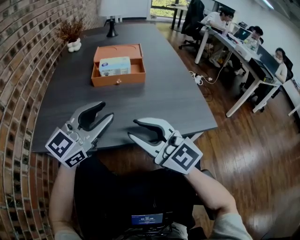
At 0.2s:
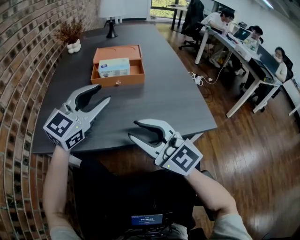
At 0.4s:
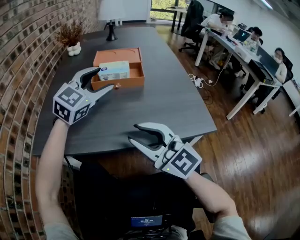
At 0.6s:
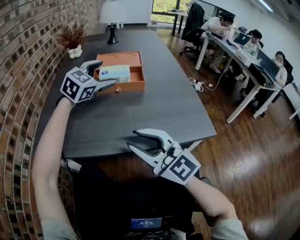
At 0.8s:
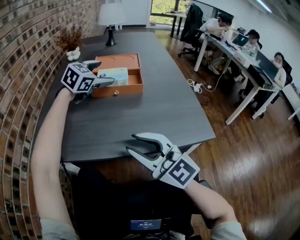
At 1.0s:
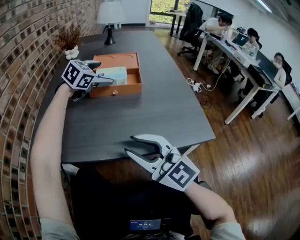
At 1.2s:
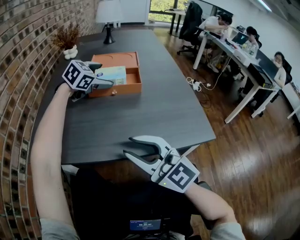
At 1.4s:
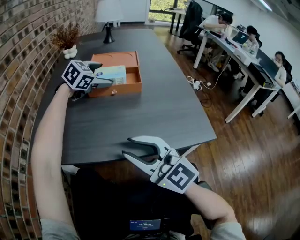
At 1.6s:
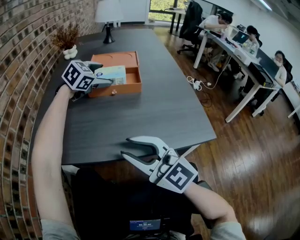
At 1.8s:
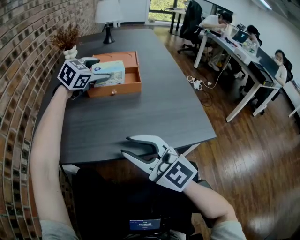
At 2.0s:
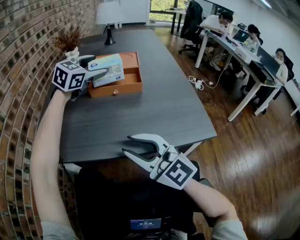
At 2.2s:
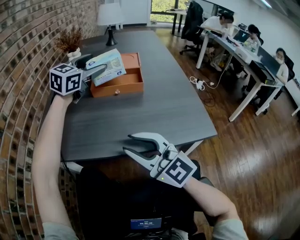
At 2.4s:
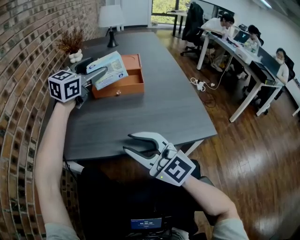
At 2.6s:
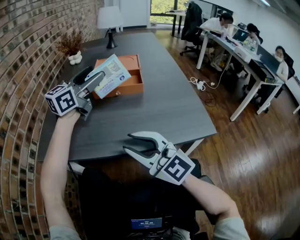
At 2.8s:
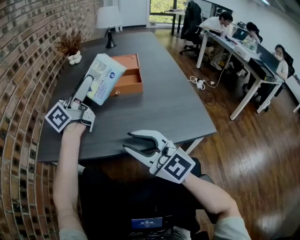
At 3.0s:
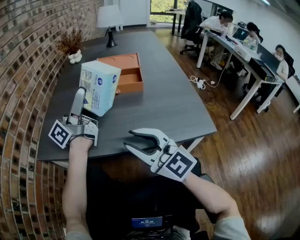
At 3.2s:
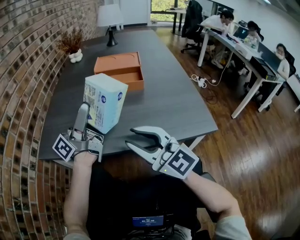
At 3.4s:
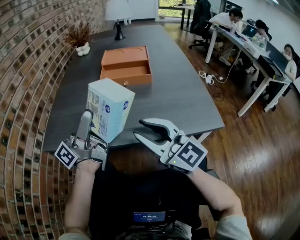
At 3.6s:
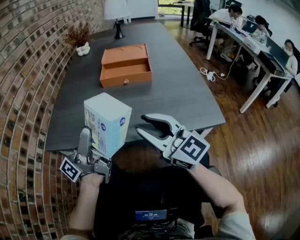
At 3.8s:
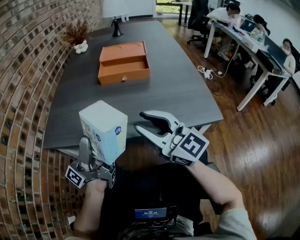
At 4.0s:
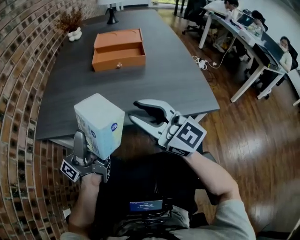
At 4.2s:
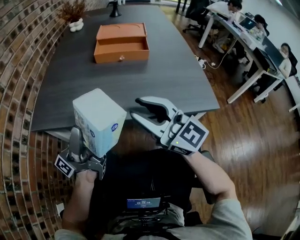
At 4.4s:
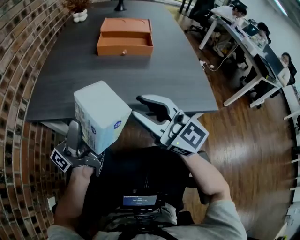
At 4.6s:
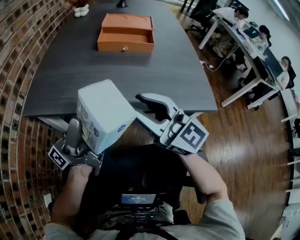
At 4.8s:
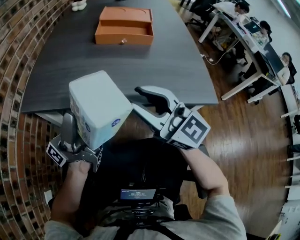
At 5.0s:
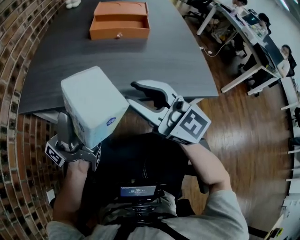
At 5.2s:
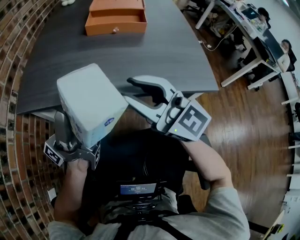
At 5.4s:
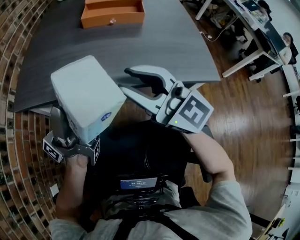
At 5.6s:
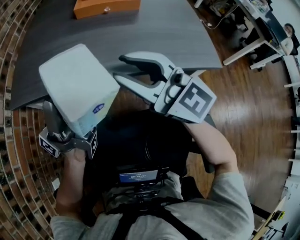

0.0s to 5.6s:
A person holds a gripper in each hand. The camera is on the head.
0.0s to 1.4s: The left gripper heads forward, covering some 25 cm, angles its fingers downward, by roughly 40 degrees, and opens its fingers.
1.4s to 2.8s: The left gripper travels backward, upward and to the left by some 20 cm, and tilts its fingers about 60 degrees upward.
2.8s to 4.2s: The left gripper travels backward and downward by about 25 cm, and rotates roughly 40 degrees.
4.2s to 5.6s: The grippers move only a little.

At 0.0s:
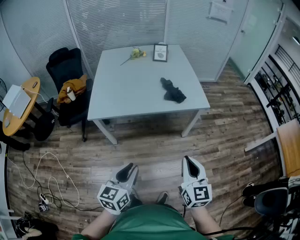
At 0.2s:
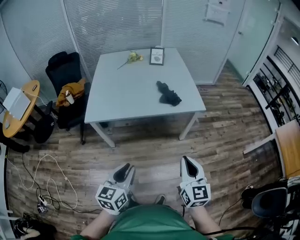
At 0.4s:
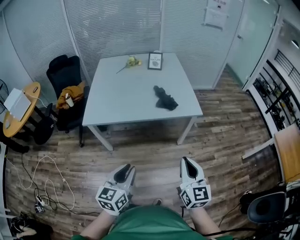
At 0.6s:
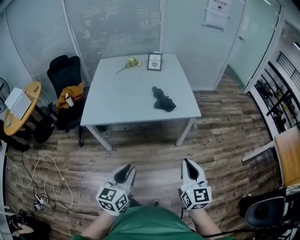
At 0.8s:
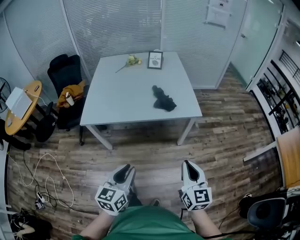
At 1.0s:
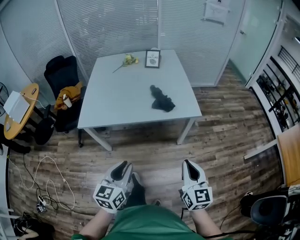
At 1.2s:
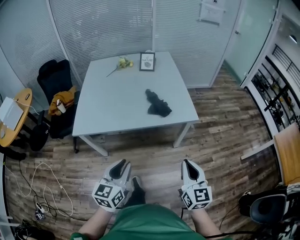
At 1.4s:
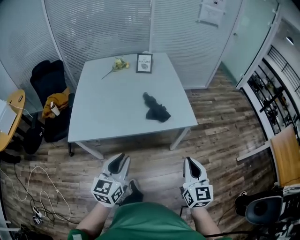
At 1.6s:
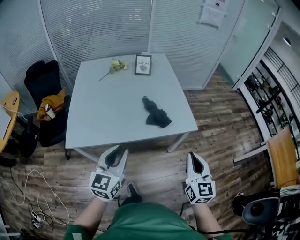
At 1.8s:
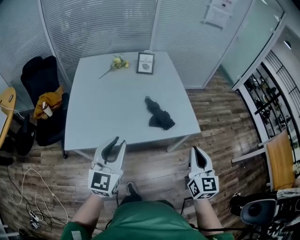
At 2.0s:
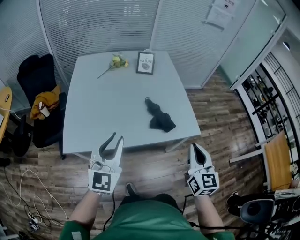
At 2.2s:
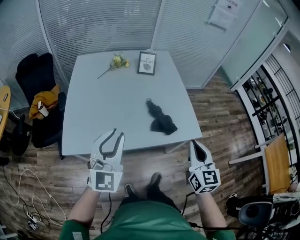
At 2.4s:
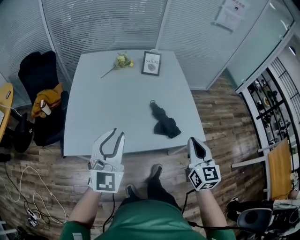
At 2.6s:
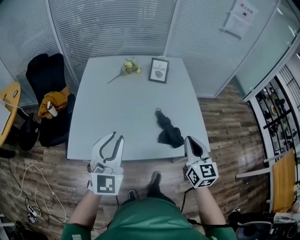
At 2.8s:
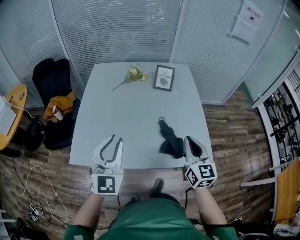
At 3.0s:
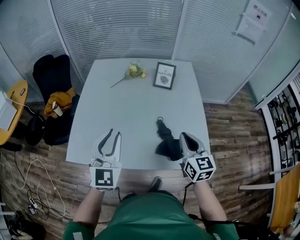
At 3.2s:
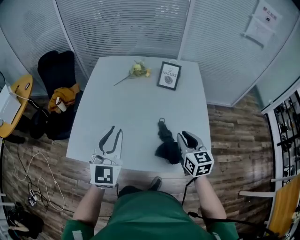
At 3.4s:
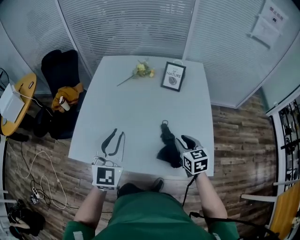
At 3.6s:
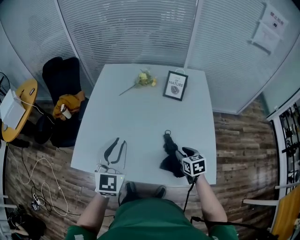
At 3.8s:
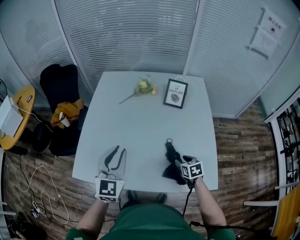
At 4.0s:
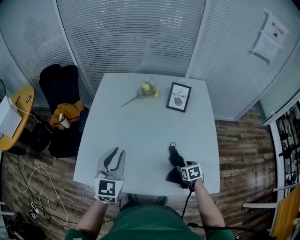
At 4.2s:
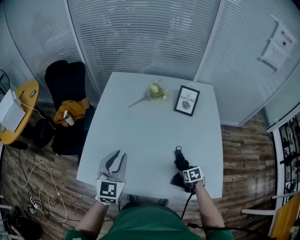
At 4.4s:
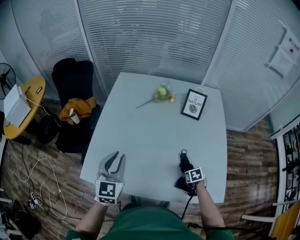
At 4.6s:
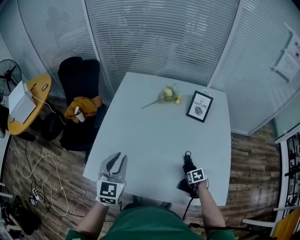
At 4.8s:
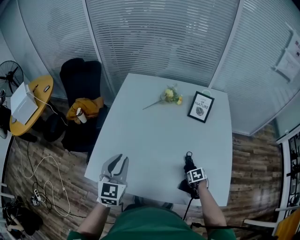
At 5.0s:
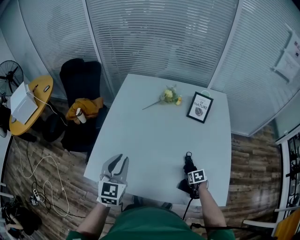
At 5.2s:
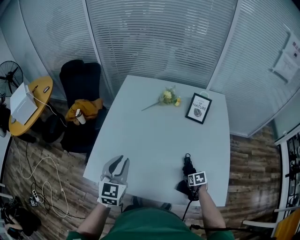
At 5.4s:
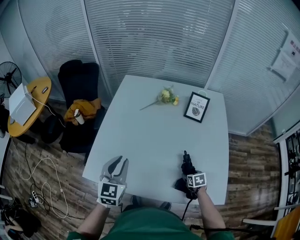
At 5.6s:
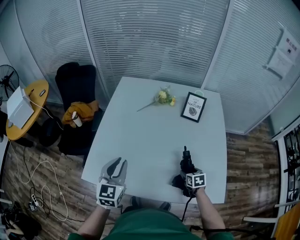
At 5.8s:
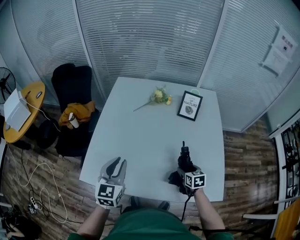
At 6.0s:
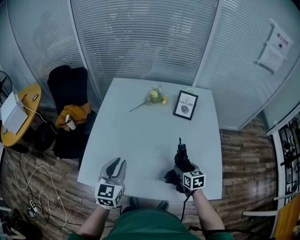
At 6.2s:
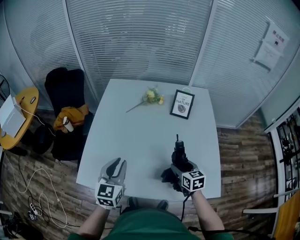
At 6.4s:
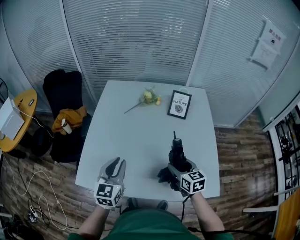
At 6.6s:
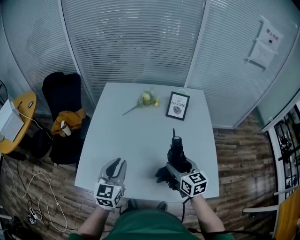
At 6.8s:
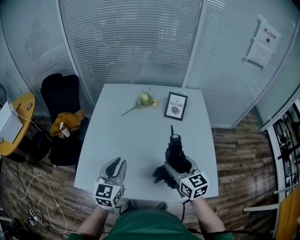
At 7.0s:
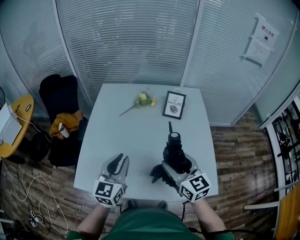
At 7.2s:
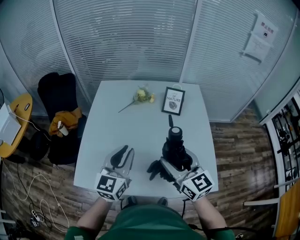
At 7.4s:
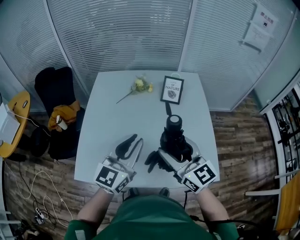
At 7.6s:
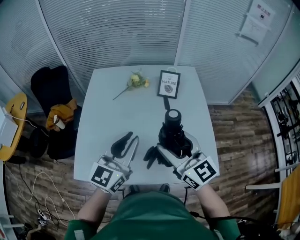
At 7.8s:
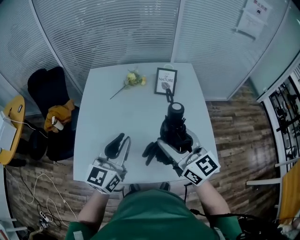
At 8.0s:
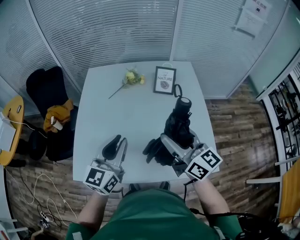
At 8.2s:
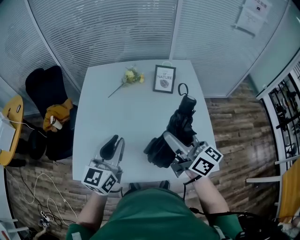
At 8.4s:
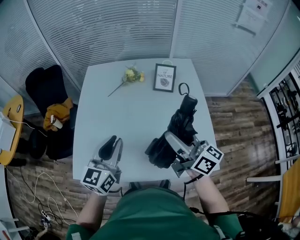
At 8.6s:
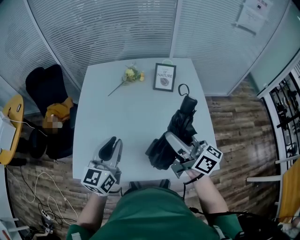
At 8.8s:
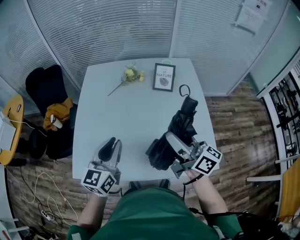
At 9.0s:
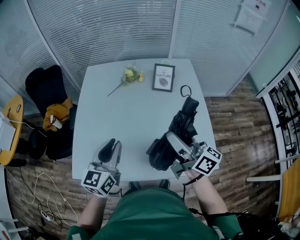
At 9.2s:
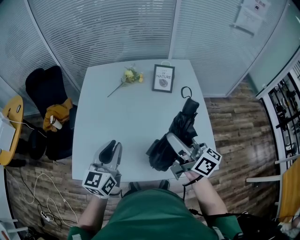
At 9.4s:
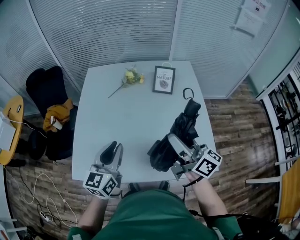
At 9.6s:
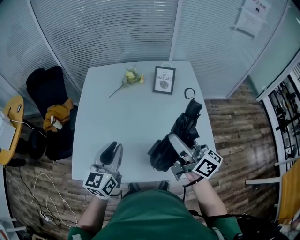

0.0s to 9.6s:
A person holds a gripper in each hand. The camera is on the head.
0.0s to 1.6s: Both grippers move forward, approximately 25 cm.
1.6s to 3.2s: The grippers both shift forward by about 35 cm. The right gripper changes its angle by approximately 30 degrees. Meanwhile the left gripper turns by roughly 30 degrees.
3.2s to 4.8s: The left gripper ends up some 20 cm from where it was; the right gripper goes approximately 30 cm downward, tilts its fingers approximately 50 degrees downward, and opens.
4.8s to 6.4s: The left gripper ends up approximately 5 cm from where it was; the right gripper goes approximately 25 cm upward, and tips its fingers upward by some 50 degrees.
6.4s to 8.0s: The right gripper is displaced upward by about 20 cm, and points its fingers some 30 degrees further upward. Meanwhile the left gripper goes approximately 10 cm to the right and upward.
8.0s to 9.6s: The right gripper turns by approximately 20 degrees.

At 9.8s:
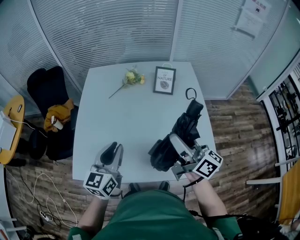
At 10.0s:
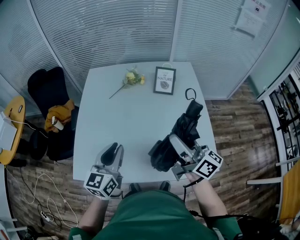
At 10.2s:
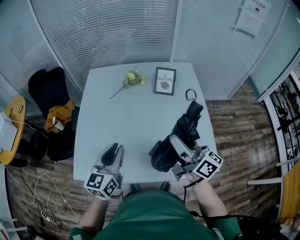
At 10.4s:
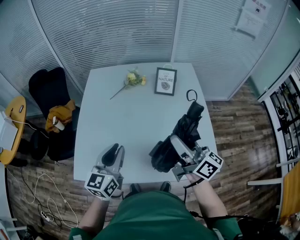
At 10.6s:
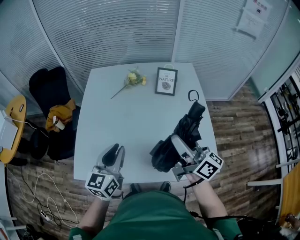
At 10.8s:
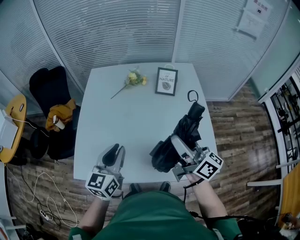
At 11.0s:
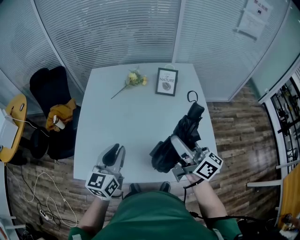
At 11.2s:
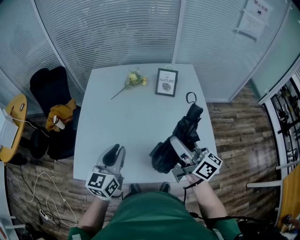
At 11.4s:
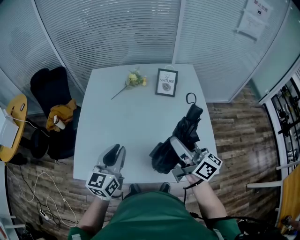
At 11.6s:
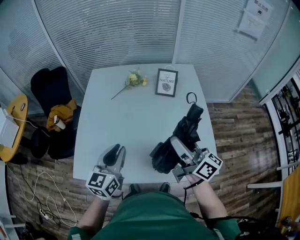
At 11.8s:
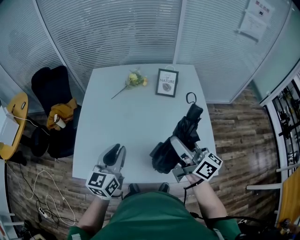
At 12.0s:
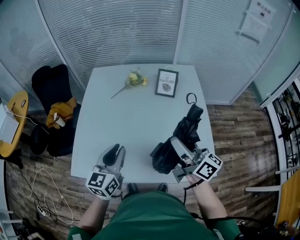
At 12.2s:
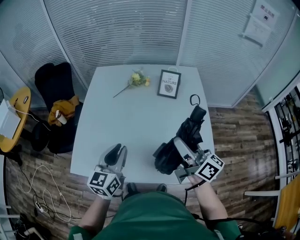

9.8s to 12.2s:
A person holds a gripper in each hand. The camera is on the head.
9.8s to 11.0s: Both grippers stay about where they are.
11.0s to 12.2s: The grippers move only a little.

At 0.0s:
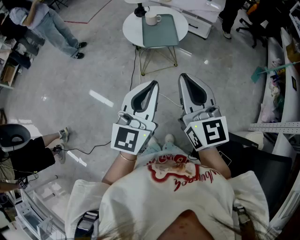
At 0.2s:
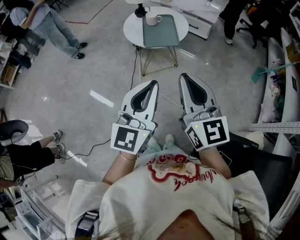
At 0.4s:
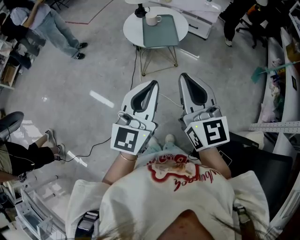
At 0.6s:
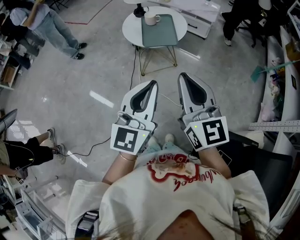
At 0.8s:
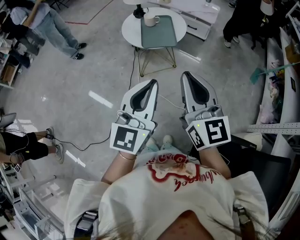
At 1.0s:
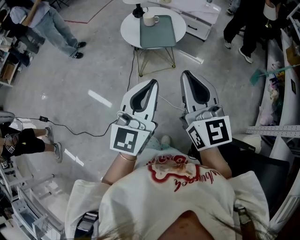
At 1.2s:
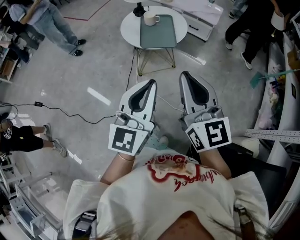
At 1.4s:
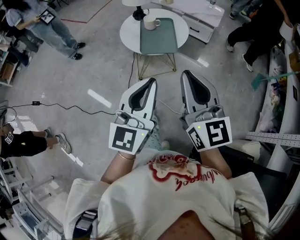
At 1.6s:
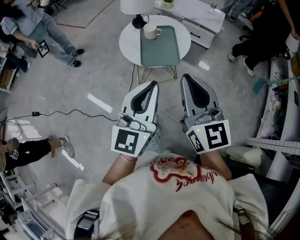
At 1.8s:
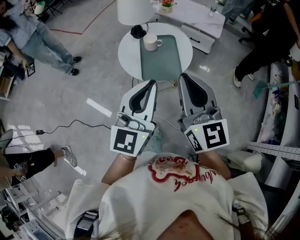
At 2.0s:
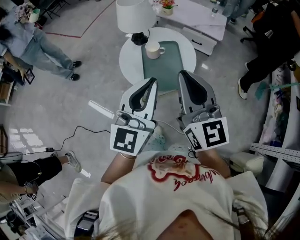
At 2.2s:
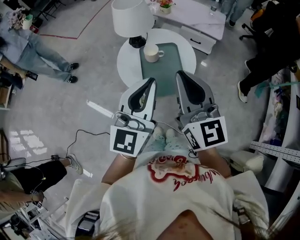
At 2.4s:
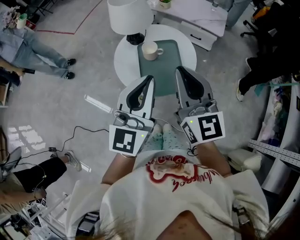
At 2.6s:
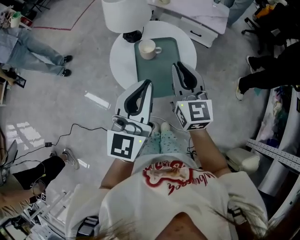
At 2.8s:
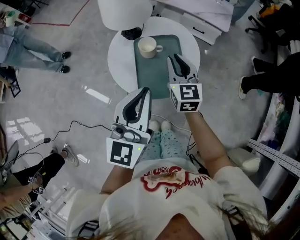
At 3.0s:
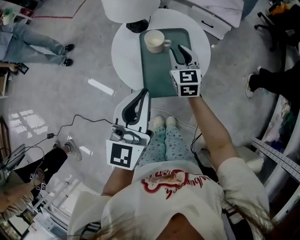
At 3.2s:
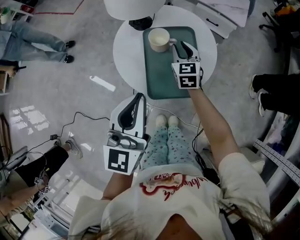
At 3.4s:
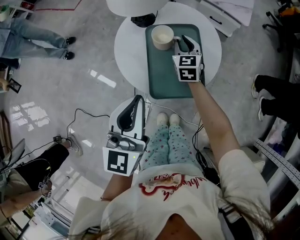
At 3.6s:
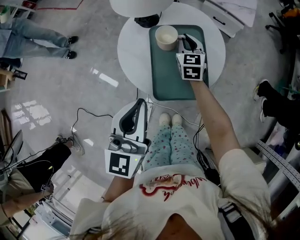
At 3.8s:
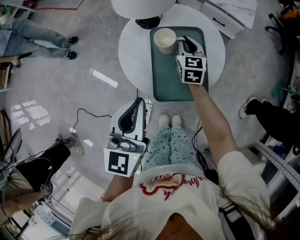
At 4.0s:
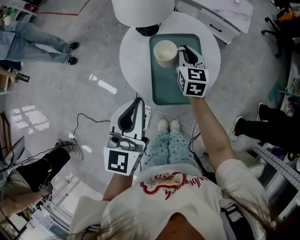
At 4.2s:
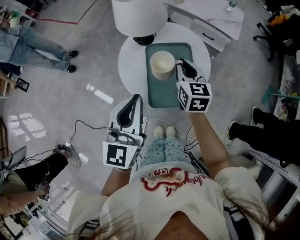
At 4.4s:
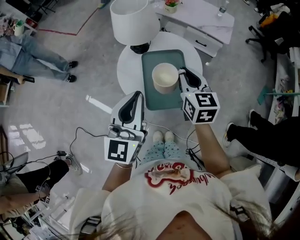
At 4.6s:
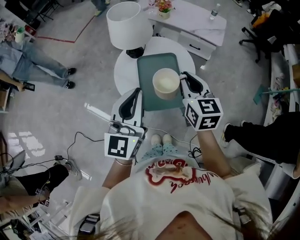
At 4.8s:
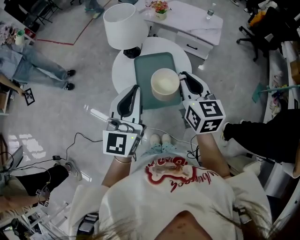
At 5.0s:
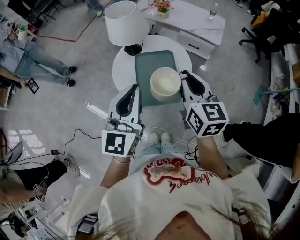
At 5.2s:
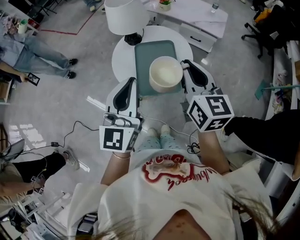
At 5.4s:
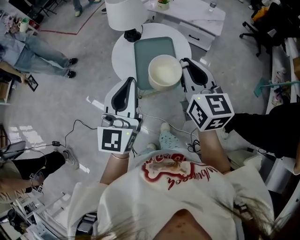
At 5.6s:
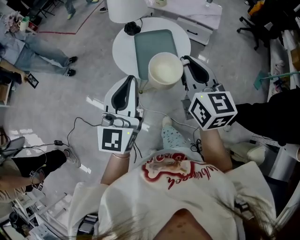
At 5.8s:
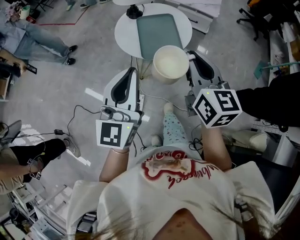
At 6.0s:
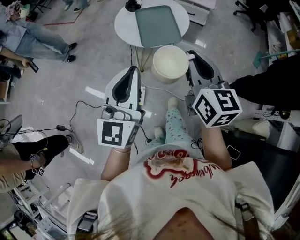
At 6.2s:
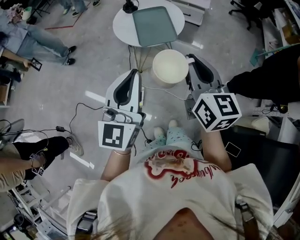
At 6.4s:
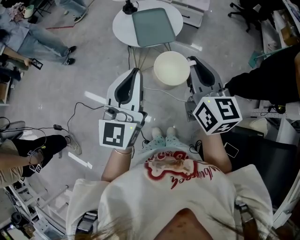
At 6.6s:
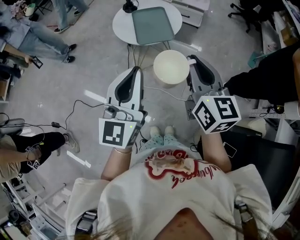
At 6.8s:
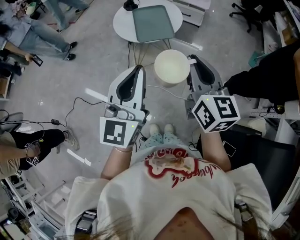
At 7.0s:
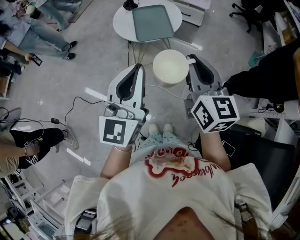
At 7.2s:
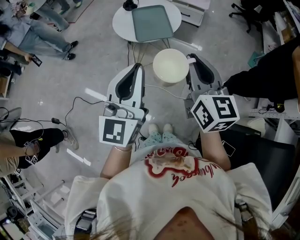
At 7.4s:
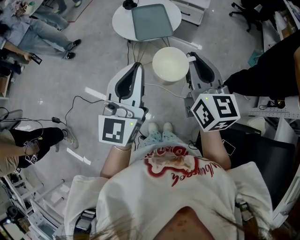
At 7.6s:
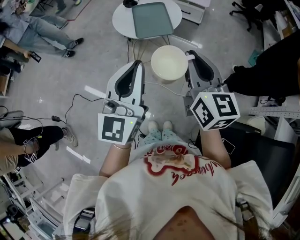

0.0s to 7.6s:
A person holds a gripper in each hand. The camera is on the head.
0.0s to 1.6s: The grippers both shift forward by roughly 15 cm.
1.6s to 3.0s: The left gripper heads forward, covering some 25 cm; the right gripper heads forward and downward, covering roughly 50 cm, and rotates about 30 degrees.
3.0s to 4.6s: The right gripper travels upward and backward by approximately 20 cm, while the left gripper is displaced upward by approximately 5 cm.
4.6s to 6.0s: Both grippers move backward, approximately 30 cm.
6.0s to 7.6s: The left gripper shifts approximately 10 cm backward and to the right; the right gripper shifts some 10 cm backward.
